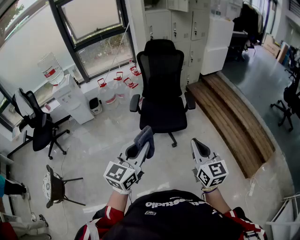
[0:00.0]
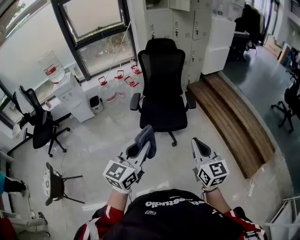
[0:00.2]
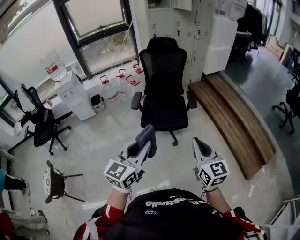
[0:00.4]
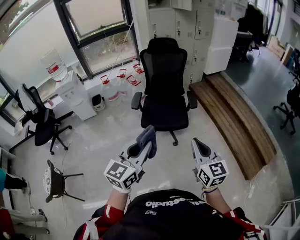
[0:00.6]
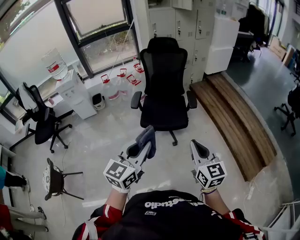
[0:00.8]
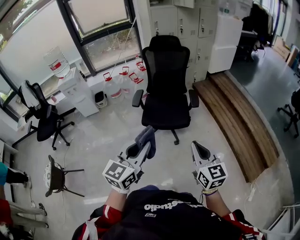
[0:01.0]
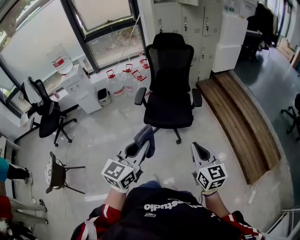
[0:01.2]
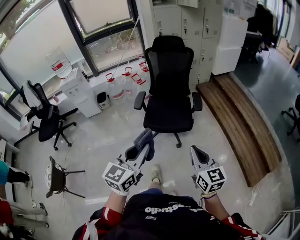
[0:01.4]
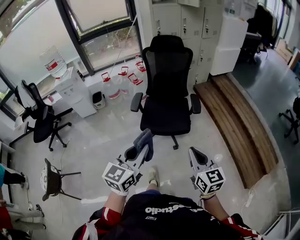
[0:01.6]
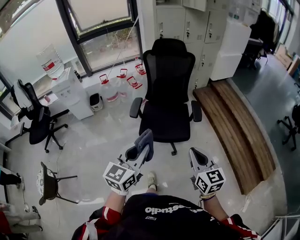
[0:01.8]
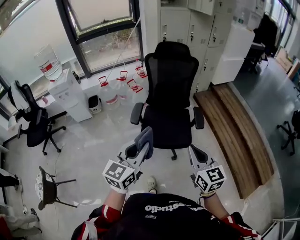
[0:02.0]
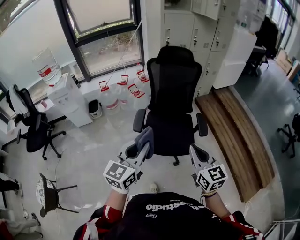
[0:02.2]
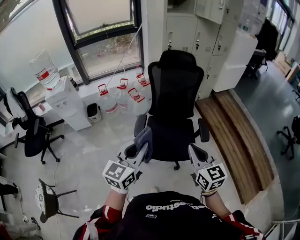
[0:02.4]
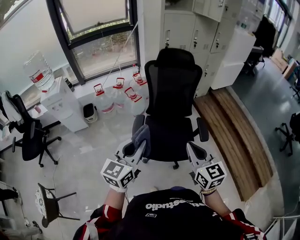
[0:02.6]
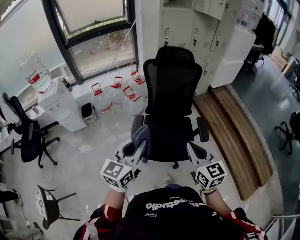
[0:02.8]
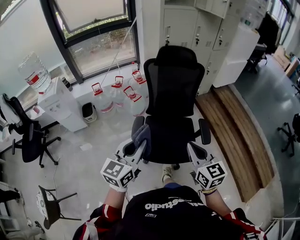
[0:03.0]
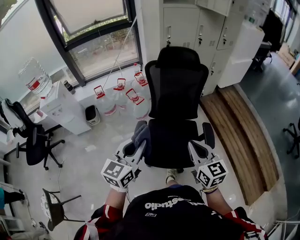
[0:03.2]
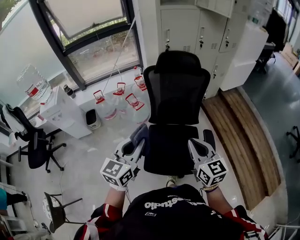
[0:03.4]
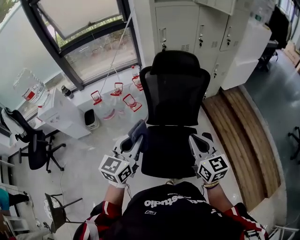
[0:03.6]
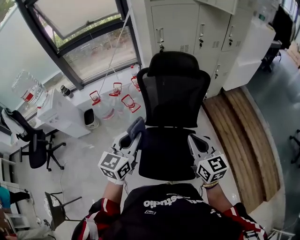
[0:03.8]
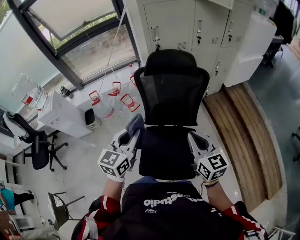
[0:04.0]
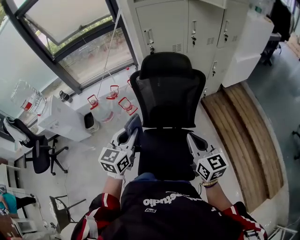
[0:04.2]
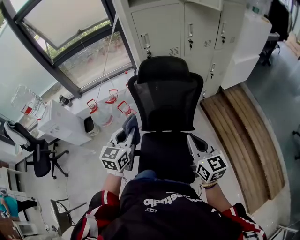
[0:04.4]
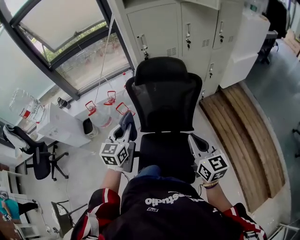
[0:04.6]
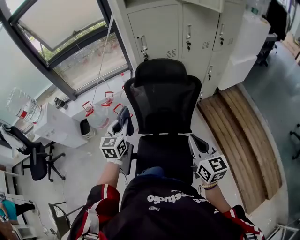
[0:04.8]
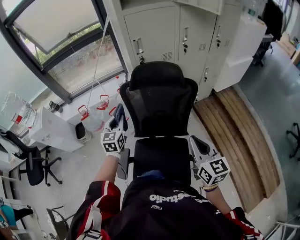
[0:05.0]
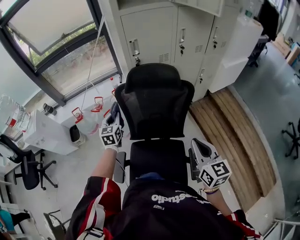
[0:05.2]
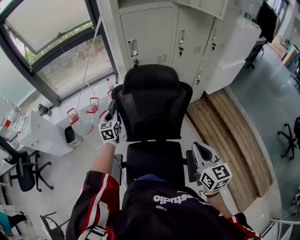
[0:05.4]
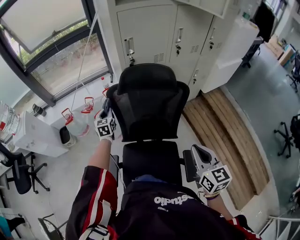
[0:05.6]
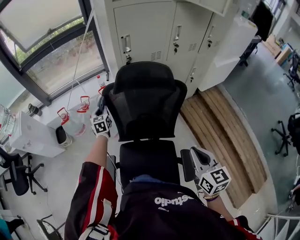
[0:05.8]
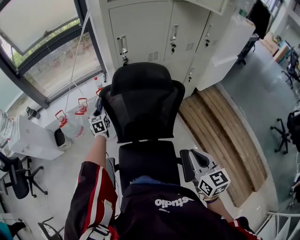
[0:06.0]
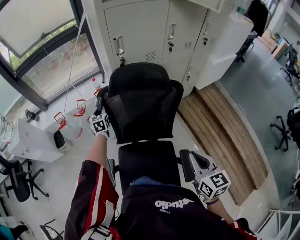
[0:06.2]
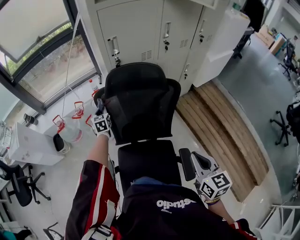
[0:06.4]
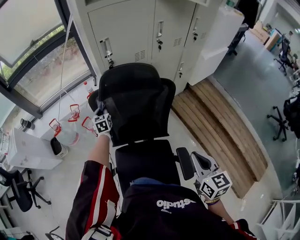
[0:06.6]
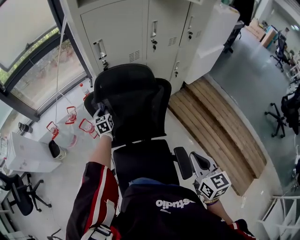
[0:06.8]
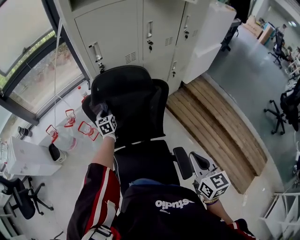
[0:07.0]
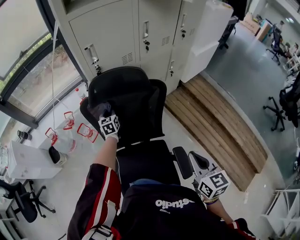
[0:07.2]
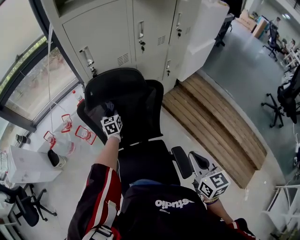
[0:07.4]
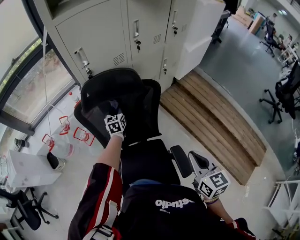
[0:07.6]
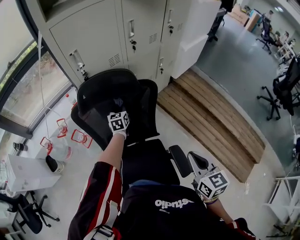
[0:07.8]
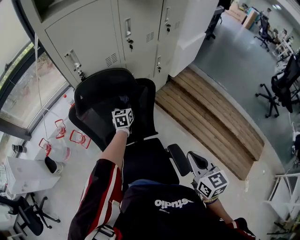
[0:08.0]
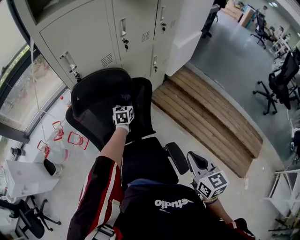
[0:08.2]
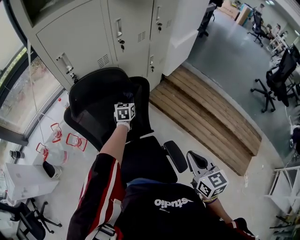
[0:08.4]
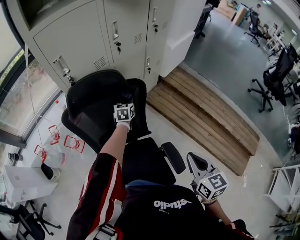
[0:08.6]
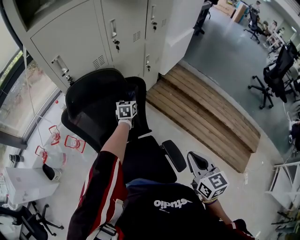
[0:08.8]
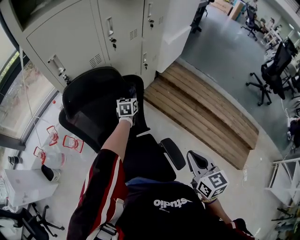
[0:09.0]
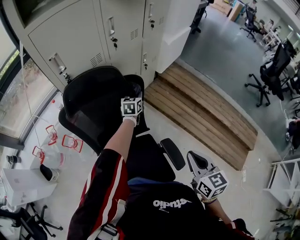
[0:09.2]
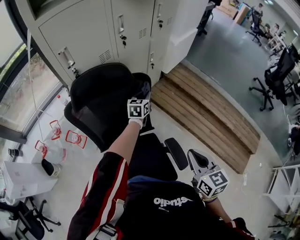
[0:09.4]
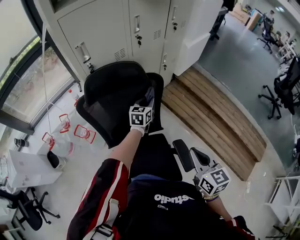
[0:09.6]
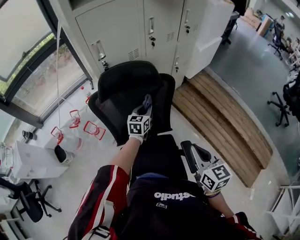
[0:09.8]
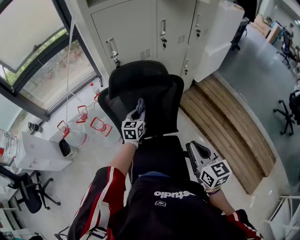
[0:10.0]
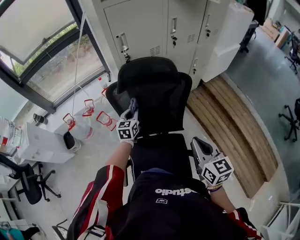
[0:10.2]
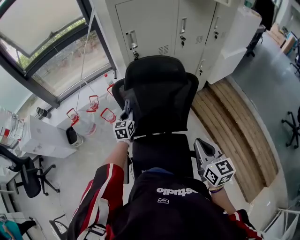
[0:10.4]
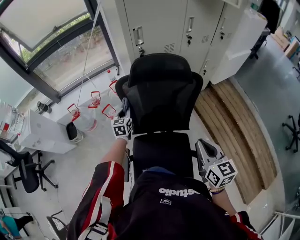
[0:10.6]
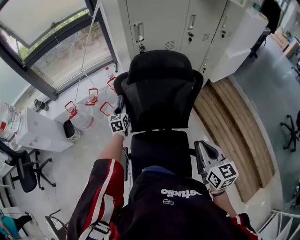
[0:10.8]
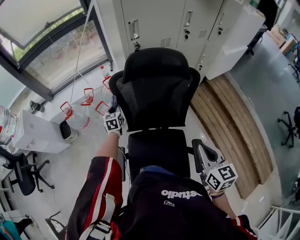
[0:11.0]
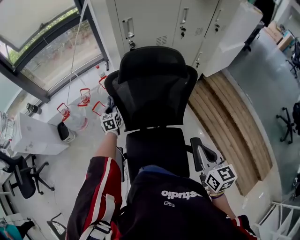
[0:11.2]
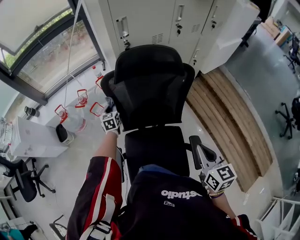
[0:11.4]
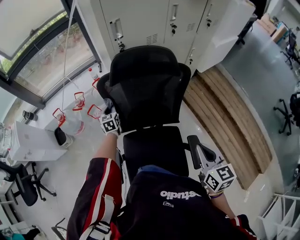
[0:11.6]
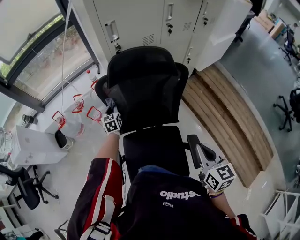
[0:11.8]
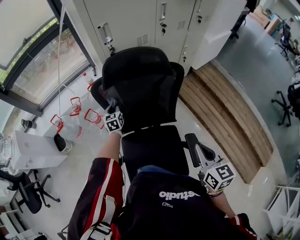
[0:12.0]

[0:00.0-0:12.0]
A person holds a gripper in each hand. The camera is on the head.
0:00.0 to 0:01.6: The left gripper heads forward, covering some 10 cm. The right gripper moves forward and downward, some 10 cm.
0:01.6 to 0:03.0: The grippers both shift forward and to the left by about 40 cm.
0:03.0 to 0:04.4: The left gripper is displaced forward by roughly 35 cm. Meanwhile the right gripper travels forward and to the right by about 35 cm.
0:04.4 to 0:06.0: The left gripper moves forward and downward, about 40 cm, and changes its angle by some 20 degrees. The right gripper shifts by roughly 10 cm.
0:06.0 to 0:07.6: The right gripper shifts roughly 5 cm to the right, while the left gripper moves to the right, about 25 cm.
0:07.6 to 0:09.0: The left gripper heads to the right, covering approximately 20 cm, and changes its angle by about 20 degrees.
0:09.0 to 0:10.4: The right gripper ends up roughly 15 cm from where it was, and turns by roughly 20 degrees; the left gripper moves about 40 cm, and rotates about 30 degrees.
0:10.4 to 0:12.0: The right gripper shifts by about 5 cm. The left gripper goes about 10 cm downward and forward, and reaches roughly 10 cm to the left, then returns.

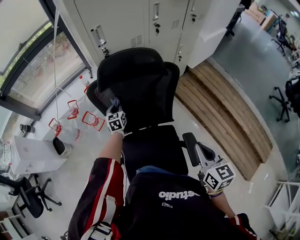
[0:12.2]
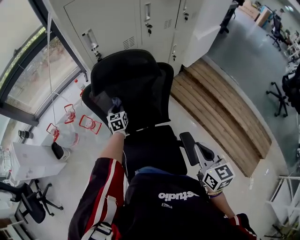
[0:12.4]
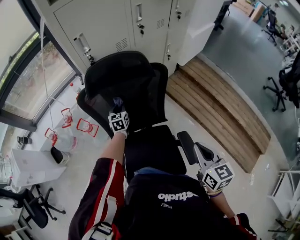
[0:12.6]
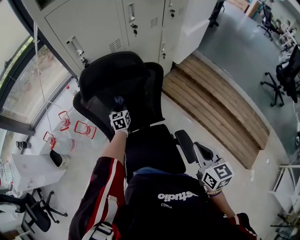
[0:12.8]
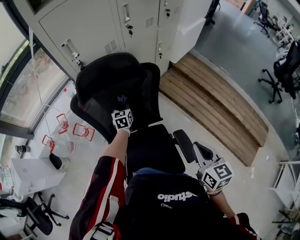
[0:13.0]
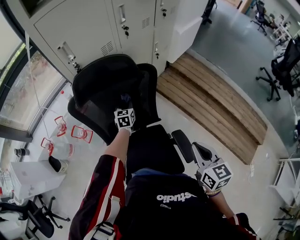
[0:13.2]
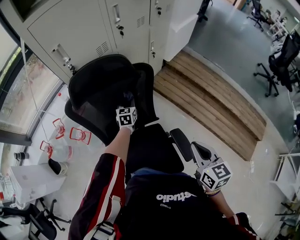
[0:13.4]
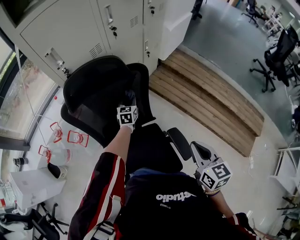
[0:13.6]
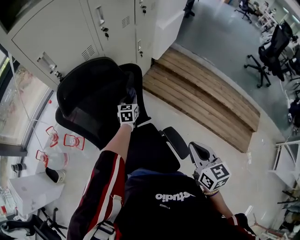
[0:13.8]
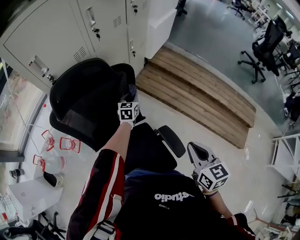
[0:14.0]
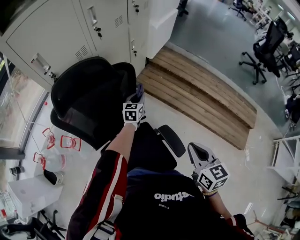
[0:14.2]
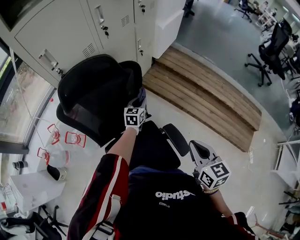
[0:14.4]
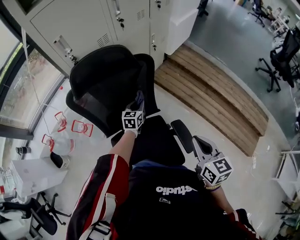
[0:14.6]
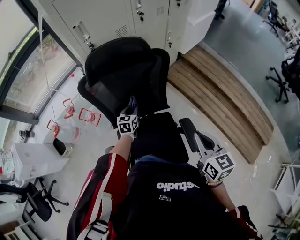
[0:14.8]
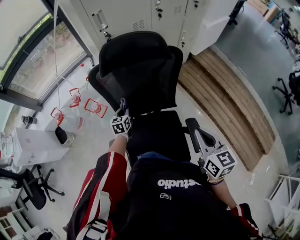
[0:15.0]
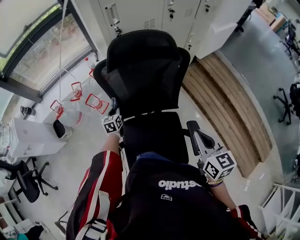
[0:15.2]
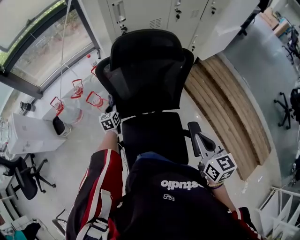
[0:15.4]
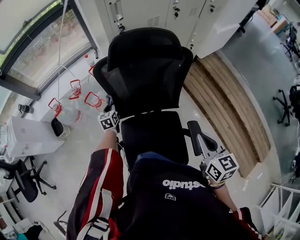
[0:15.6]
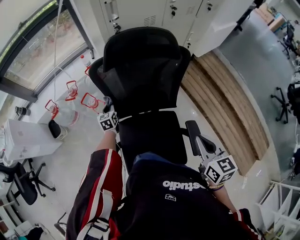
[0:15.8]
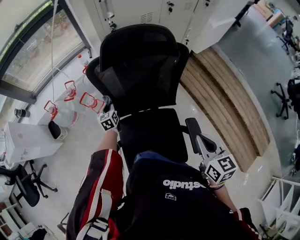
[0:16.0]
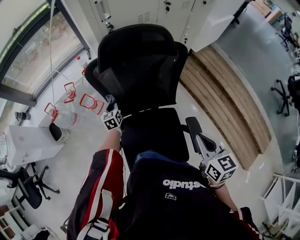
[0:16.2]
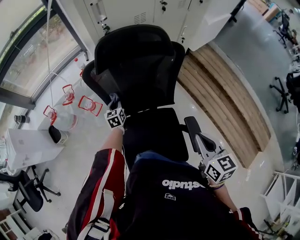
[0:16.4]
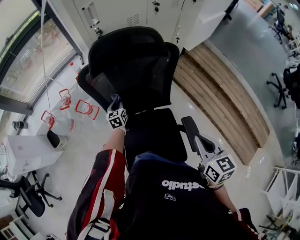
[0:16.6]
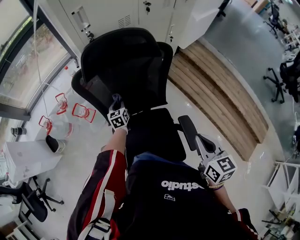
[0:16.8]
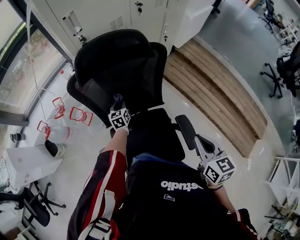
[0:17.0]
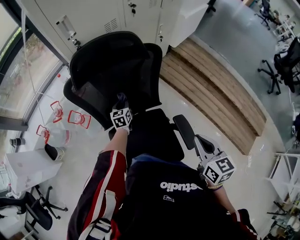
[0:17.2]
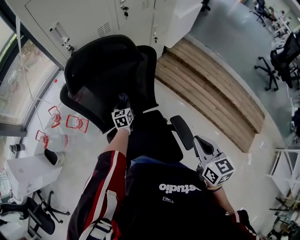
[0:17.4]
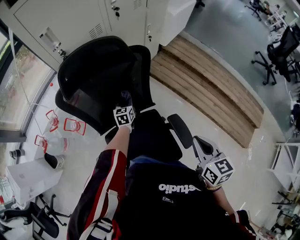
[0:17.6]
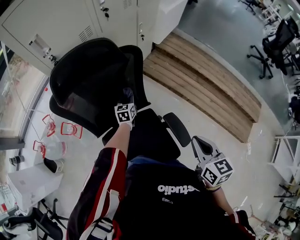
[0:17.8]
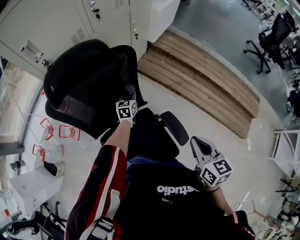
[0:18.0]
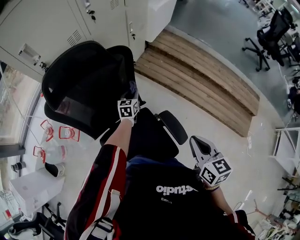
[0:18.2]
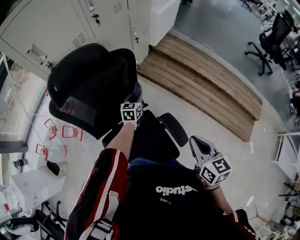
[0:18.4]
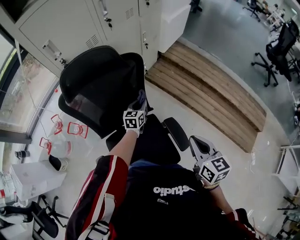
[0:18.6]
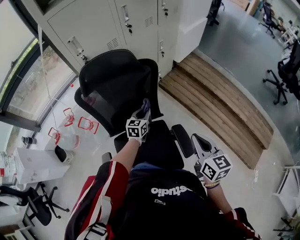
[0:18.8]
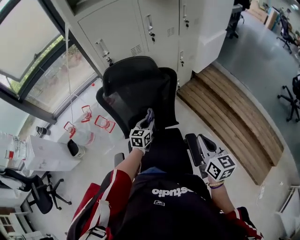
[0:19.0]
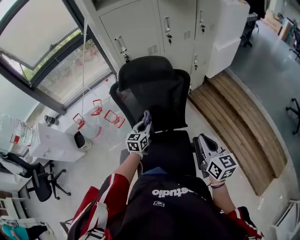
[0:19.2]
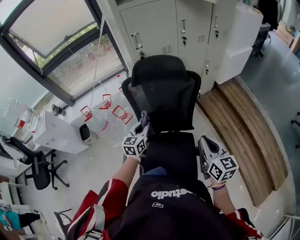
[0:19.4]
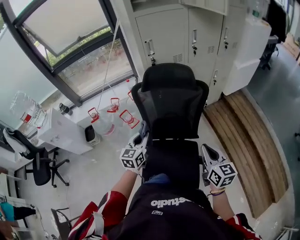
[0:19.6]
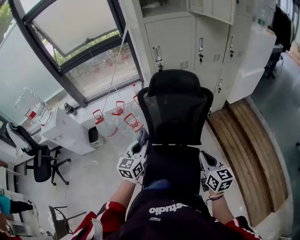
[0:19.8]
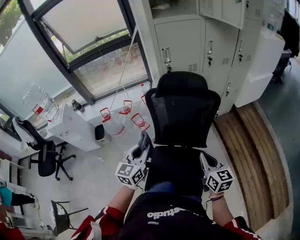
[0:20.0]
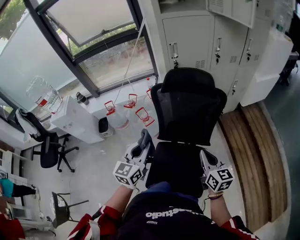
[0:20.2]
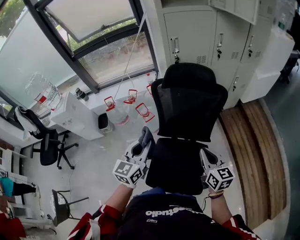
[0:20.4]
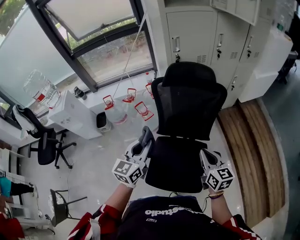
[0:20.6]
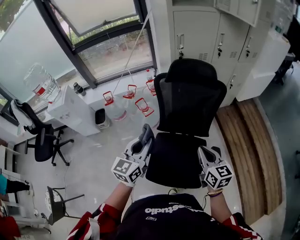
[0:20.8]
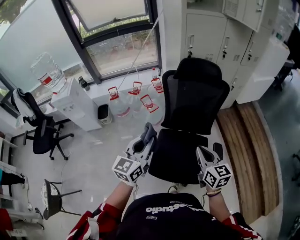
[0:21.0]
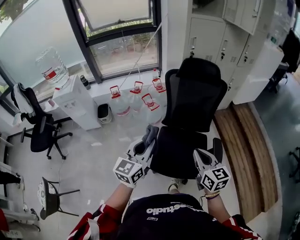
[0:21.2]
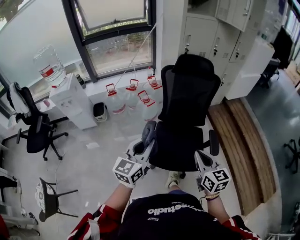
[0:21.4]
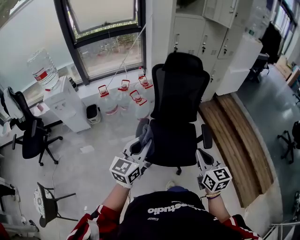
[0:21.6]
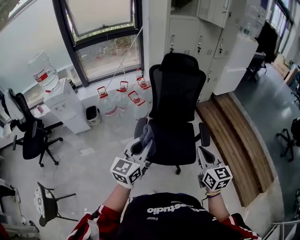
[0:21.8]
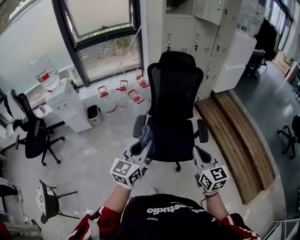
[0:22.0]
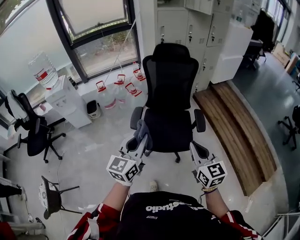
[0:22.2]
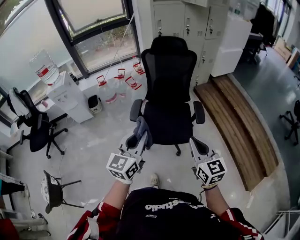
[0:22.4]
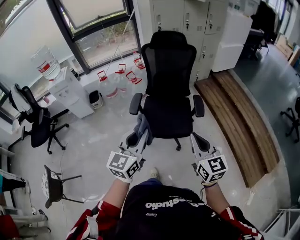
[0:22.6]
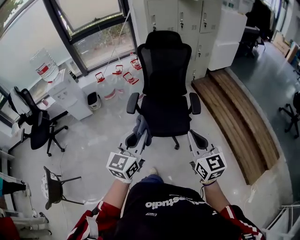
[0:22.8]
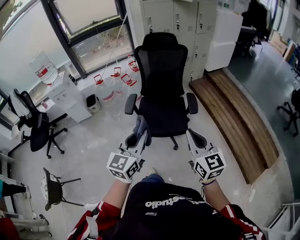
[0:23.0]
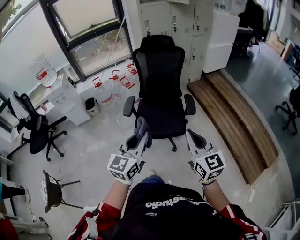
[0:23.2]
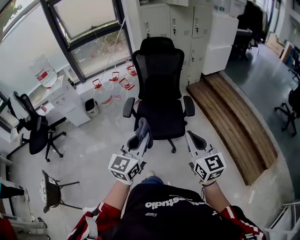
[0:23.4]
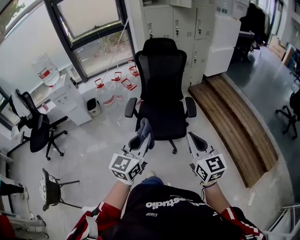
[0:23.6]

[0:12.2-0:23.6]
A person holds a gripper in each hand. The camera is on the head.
0:12.2 to 0:13.6: The right gripper moves to the right, approximately 5 cm, while the left gripper shifts about 25 cm to the right, and swivels approximately 30 degrees.
0:13.6 to 0:15.0: The right gripper shifts by roughly 5 cm. Meanwhile the left gripper changes place by some 30 cm, and turns by some 20 degrees.
0:15.0 to 0:16.4: The left gripper heads forward, covering roughly 5 cm, and travels to the left and back again, roughly 10 cm each way.
0:16.4 to 0:17.8: The left gripper moves to the right, approximately 25 cm, and swivels roughly 30 degrees. Meanwhile the right gripper heads to the right, covering approximately 10 cm.
0:17.8 to 0:19.4: The left gripper ends up roughly 35 cm from where it was, and changes its angle by some 20 degrees, while the right gripper moves upward, roughly 10 cm, and turns by roughly 30 degrees.
0:19.4 to 0:20.8: The right gripper travels to the left and backward by roughly 15 cm. Meanwhile the left gripper shifts about 25 cm backward, upward and to the left.
0:20.8 to 0:22.2: Both grippers are carried backward, approximately 40 cm.
0:22.2 to 0:23.6: The two grippers go some 20 cm backward and to the right.
